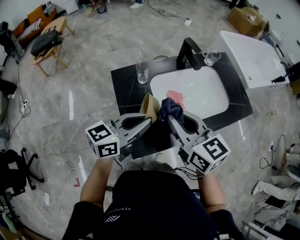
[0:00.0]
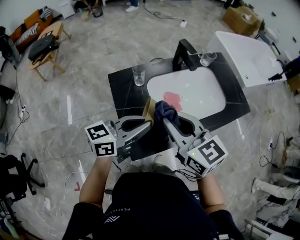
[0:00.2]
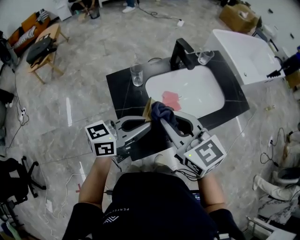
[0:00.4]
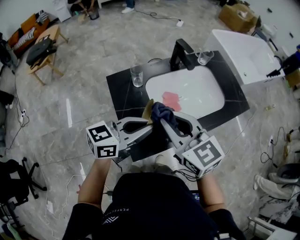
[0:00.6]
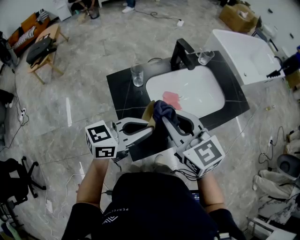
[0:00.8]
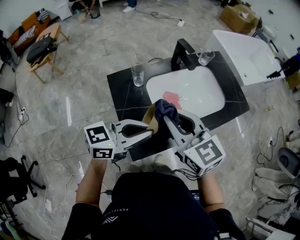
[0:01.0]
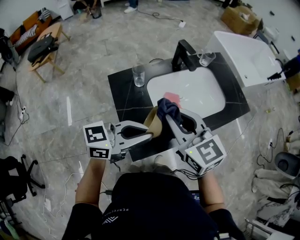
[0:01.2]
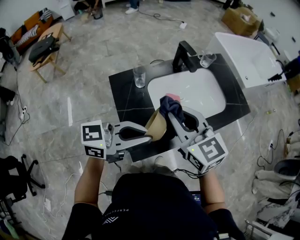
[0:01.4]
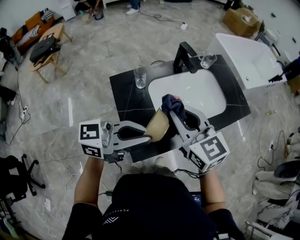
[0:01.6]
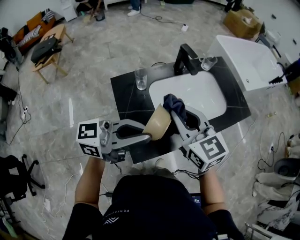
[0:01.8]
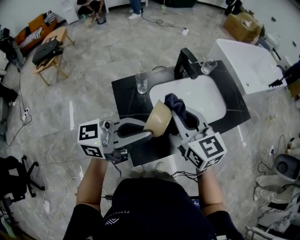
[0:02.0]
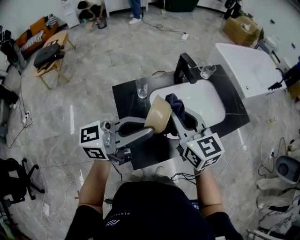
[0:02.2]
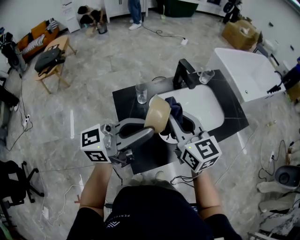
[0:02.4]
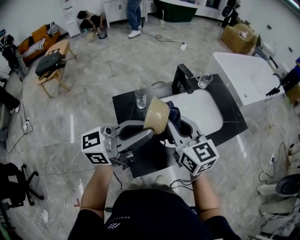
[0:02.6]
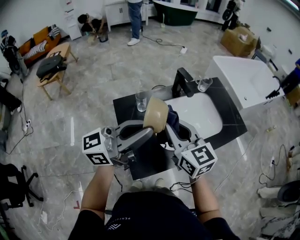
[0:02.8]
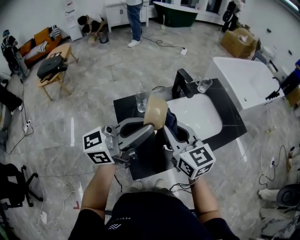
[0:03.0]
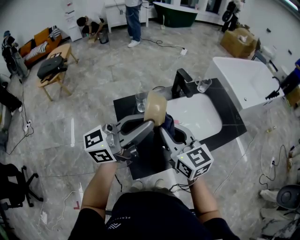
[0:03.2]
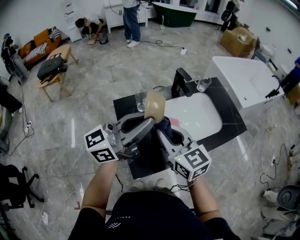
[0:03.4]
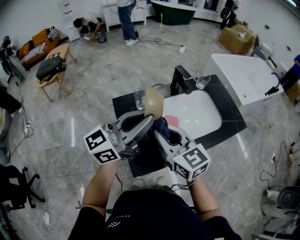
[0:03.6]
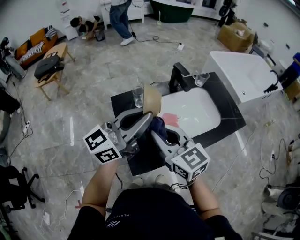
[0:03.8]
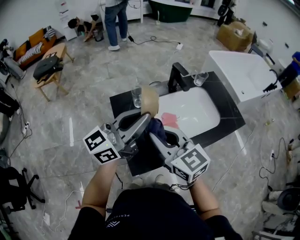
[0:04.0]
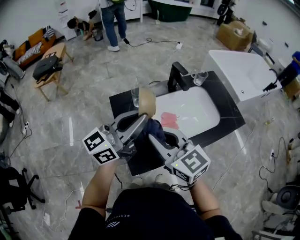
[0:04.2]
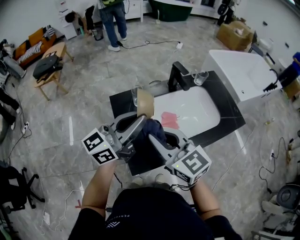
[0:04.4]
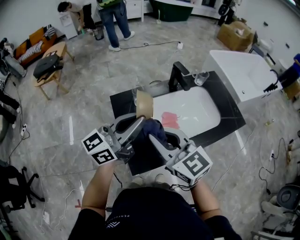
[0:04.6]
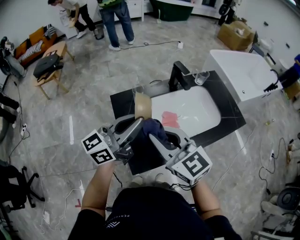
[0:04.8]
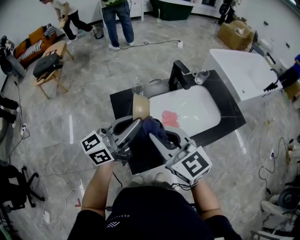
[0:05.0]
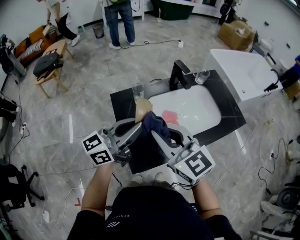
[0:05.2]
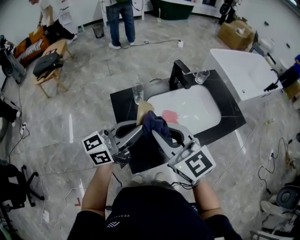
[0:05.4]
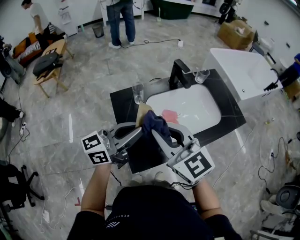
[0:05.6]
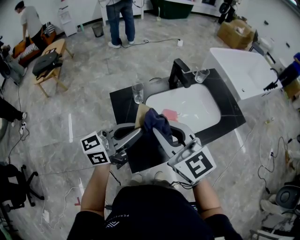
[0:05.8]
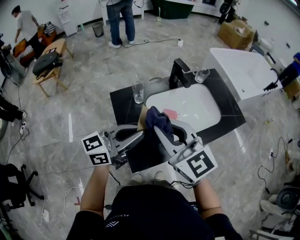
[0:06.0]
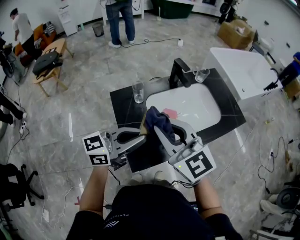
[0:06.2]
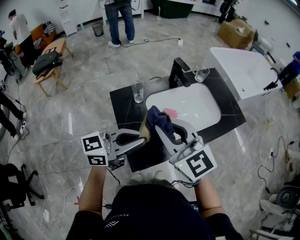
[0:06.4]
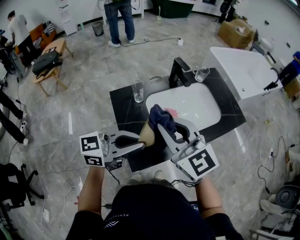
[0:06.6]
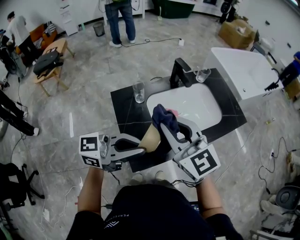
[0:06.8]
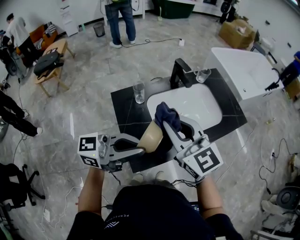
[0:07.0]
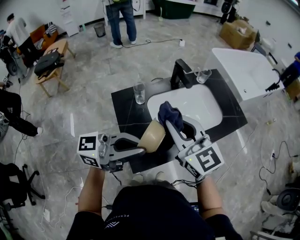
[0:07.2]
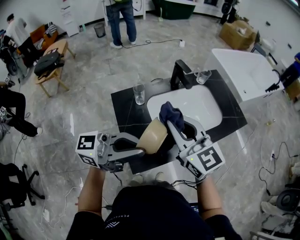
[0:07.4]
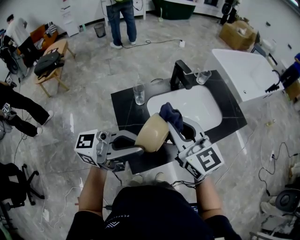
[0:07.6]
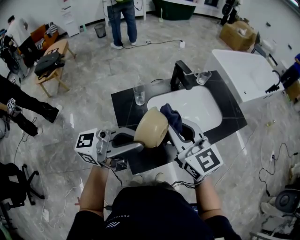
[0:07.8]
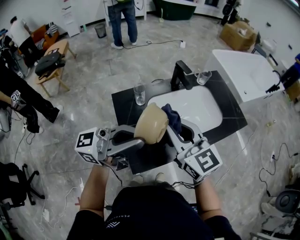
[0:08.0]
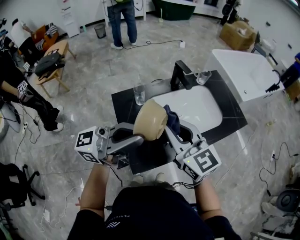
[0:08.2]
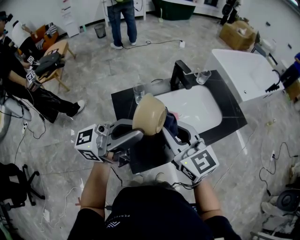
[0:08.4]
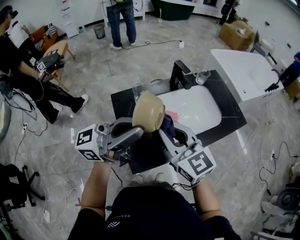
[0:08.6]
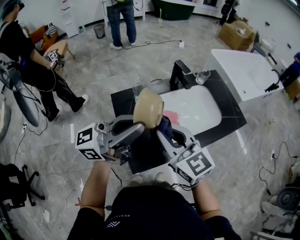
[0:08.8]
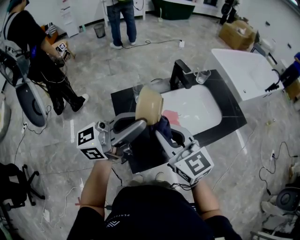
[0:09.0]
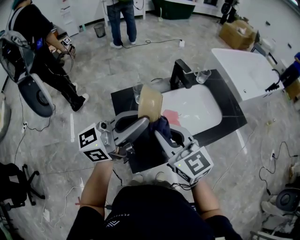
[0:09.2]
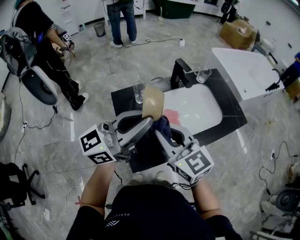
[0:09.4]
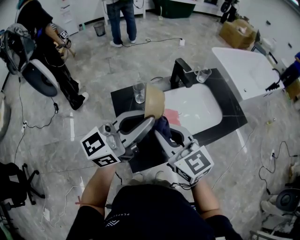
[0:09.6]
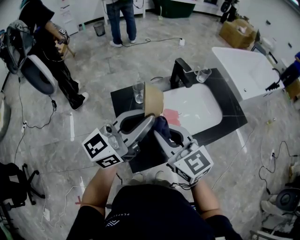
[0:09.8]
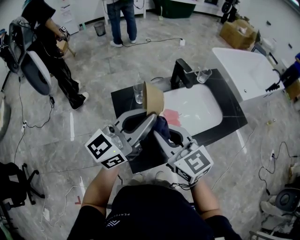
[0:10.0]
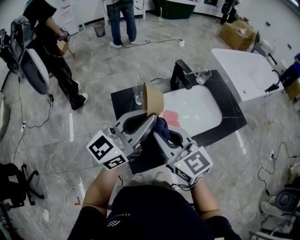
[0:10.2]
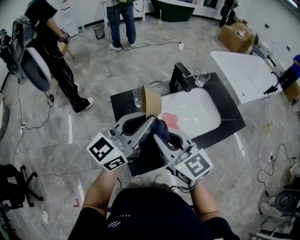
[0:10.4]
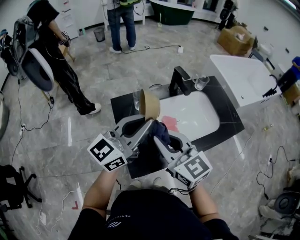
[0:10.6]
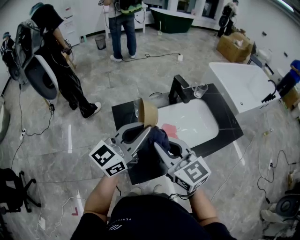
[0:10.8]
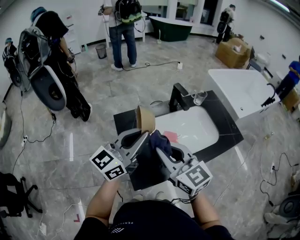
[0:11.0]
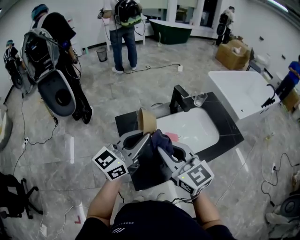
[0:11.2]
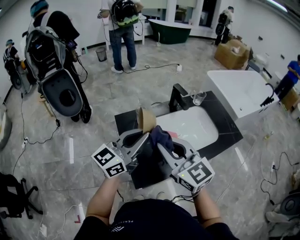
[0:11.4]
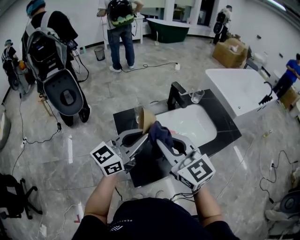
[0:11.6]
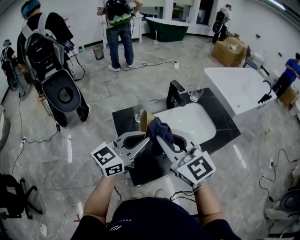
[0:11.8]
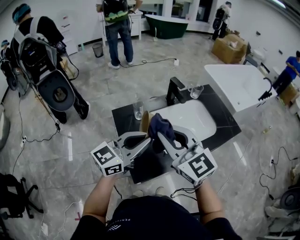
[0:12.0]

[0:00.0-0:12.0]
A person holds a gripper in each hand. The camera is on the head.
0:00.0 to 0:01.6: The left gripper goes approximately 10 cm upward and backward, and turns by roughly 30 degrees.
0:01.6 to 0:03.0: The left gripper heads upward and forward, covering approximately 10 cm, and swivels about 20 degrees.
0:03.0 to 0:04.4: The right gripper heads backward, covering roughly 5 cm.
0:04.4 to 0:06.0: The left gripper goes approximately 5 cm downward.
0:06.0 to 0:07.6: The left gripper travels upward and backward by approximately 10 cm, and rotates roughly 30 degrees.
0:07.6 to 0:09.0: The left gripper is displaced forward by roughly 5 cm.
0:09.0 to 0:10.4: The left gripper ends up some 5 cm from where it was, and changes its angle by about 30 degrees.
0:10.4 to 0:12.0: The left gripper moves roughly 5 cm, while the right gripper shifts approximately 5 cm upward.

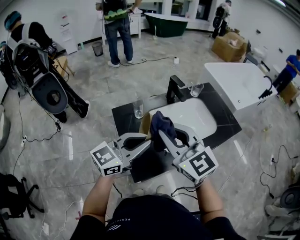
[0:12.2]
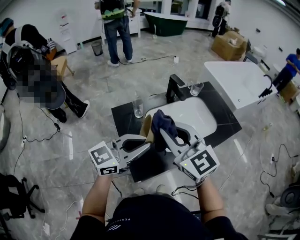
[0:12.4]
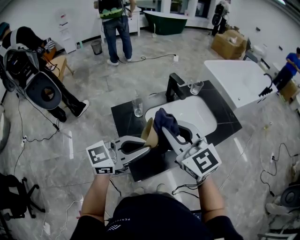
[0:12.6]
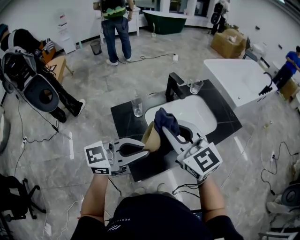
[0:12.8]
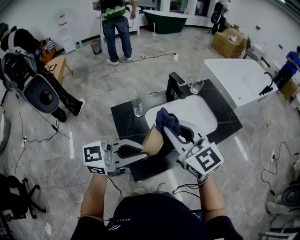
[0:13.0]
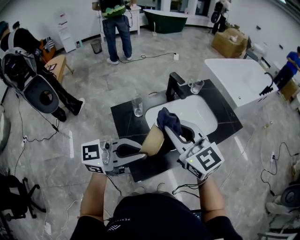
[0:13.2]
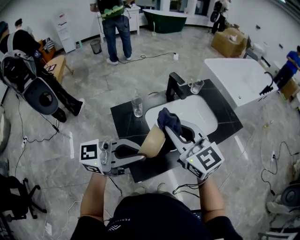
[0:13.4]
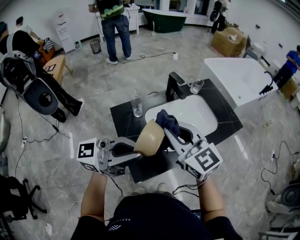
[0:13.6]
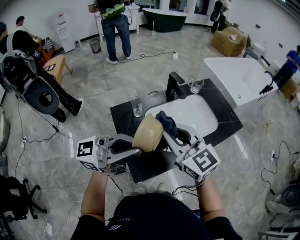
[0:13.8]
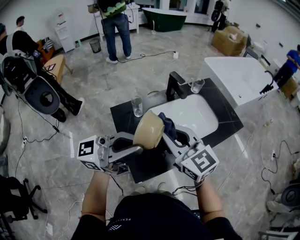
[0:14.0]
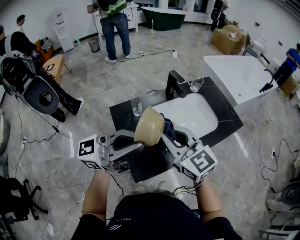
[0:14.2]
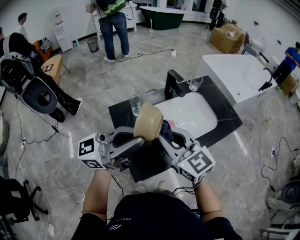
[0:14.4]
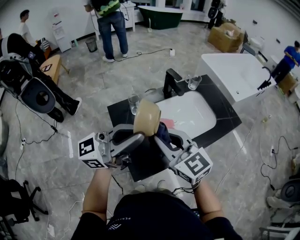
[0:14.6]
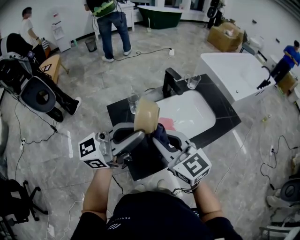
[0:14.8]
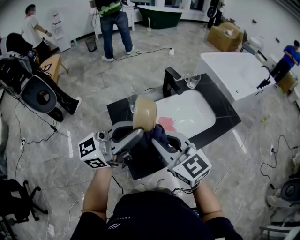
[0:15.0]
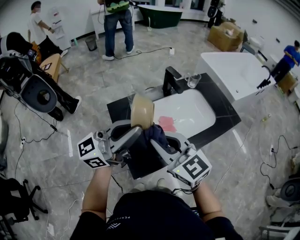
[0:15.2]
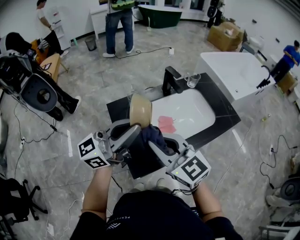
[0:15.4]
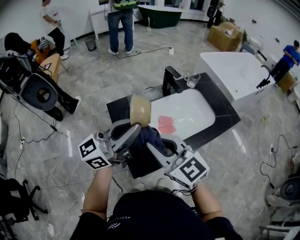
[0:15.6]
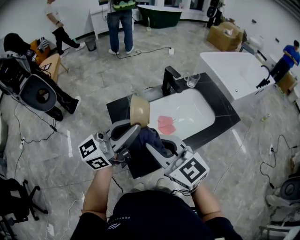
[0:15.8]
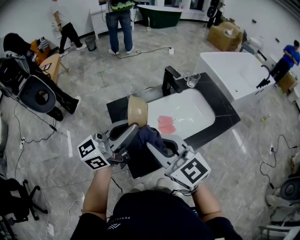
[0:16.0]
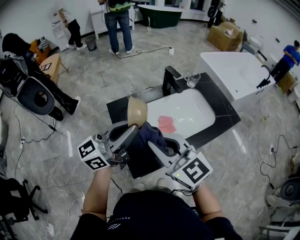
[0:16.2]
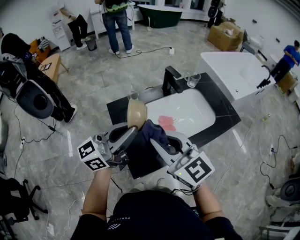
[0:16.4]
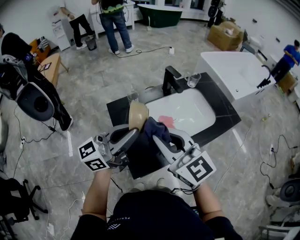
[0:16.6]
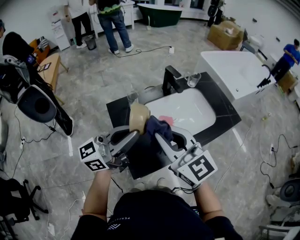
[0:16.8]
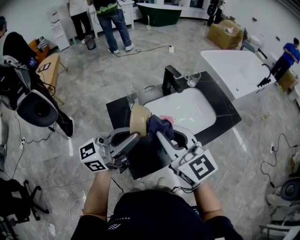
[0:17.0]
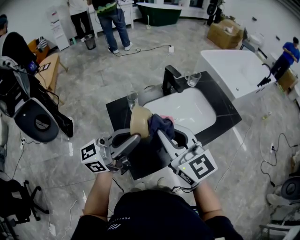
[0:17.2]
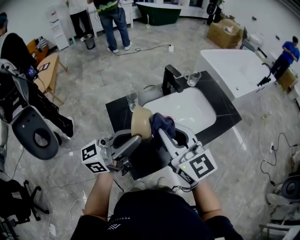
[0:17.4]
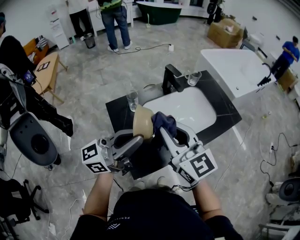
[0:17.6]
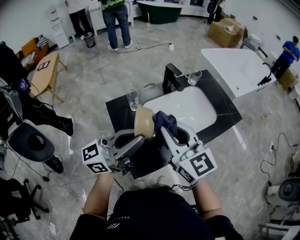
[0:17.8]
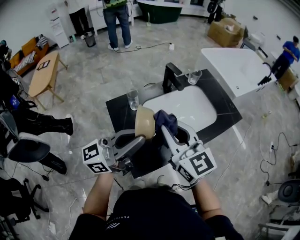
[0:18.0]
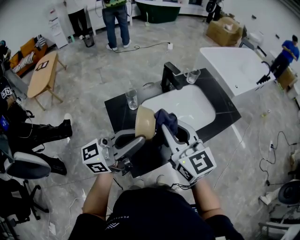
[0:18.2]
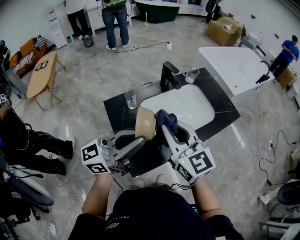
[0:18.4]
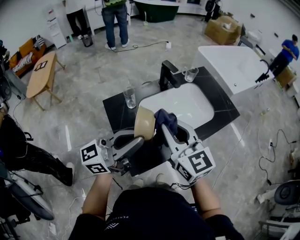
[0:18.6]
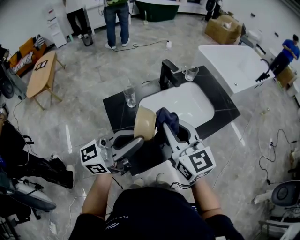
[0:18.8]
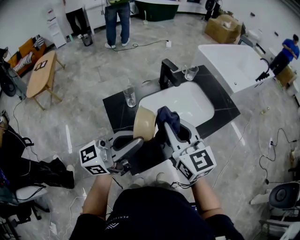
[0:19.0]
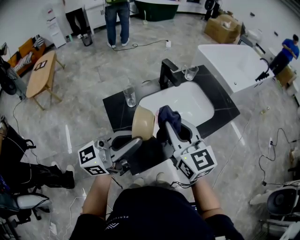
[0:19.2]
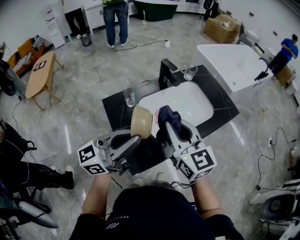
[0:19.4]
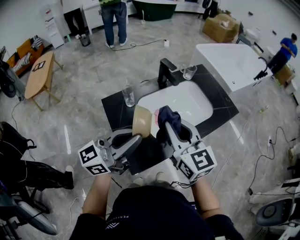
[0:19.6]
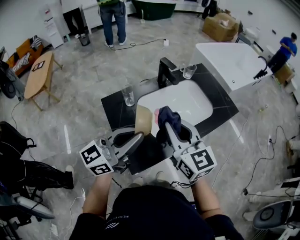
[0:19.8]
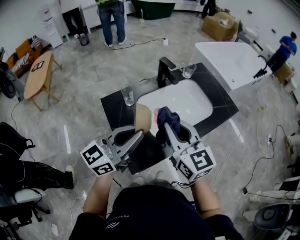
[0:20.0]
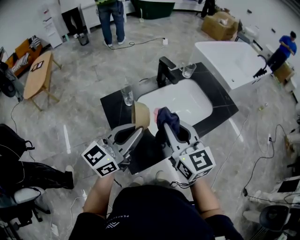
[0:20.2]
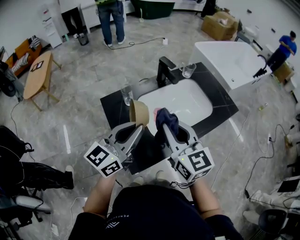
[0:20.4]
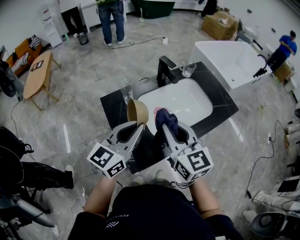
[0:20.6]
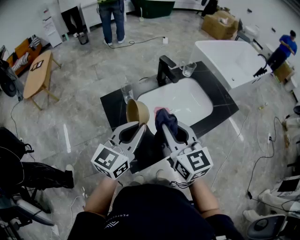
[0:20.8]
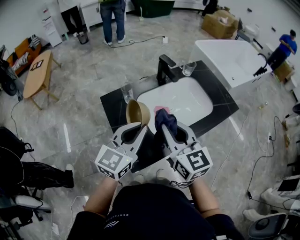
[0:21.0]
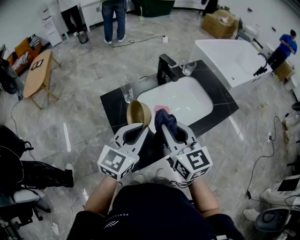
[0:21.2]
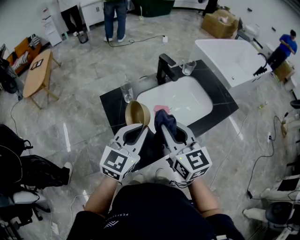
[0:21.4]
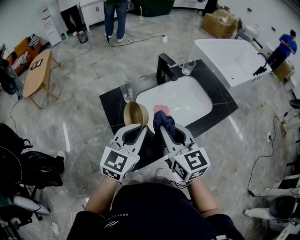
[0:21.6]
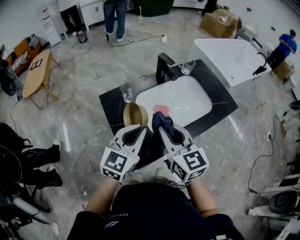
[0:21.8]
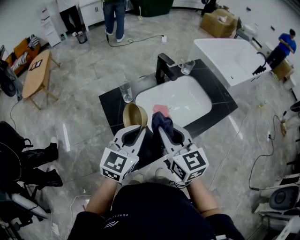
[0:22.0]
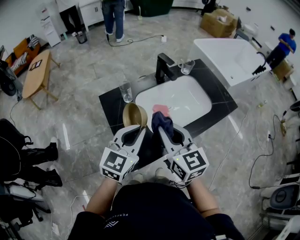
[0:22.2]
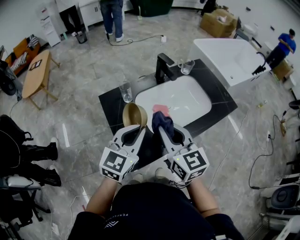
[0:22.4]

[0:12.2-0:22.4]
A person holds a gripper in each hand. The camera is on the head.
0:12.2 to 0:13.6: The left gripper moves upward, about 5 cm, and changes its angle by about 40 degrees.
0:13.6 to 0:15.2: The right gripper ends up roughly 5 cm from where it was, while the left gripper moves some 5 cm, and rotates roughly 20 degrees.
0:15.2 to 0:18.0: The grippers stay close to where they were, moving slightly.
0:18.0 to 0:19.4: There are only small adjustments of the grippers.
0:19.4 to 0:21.0: The left gripper shifts roughly 5 cm downward, and swivels roughly 40 degrees.
0:21.0 to 0:22.4: There are only small adjustments of the grippers.

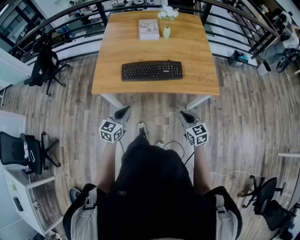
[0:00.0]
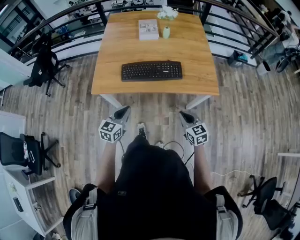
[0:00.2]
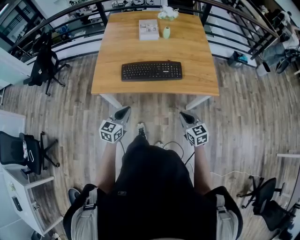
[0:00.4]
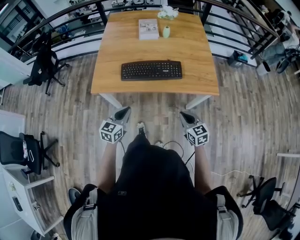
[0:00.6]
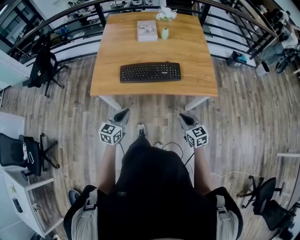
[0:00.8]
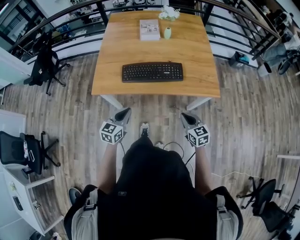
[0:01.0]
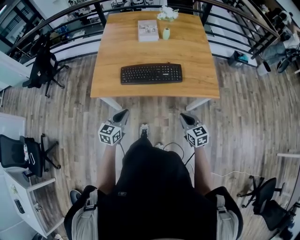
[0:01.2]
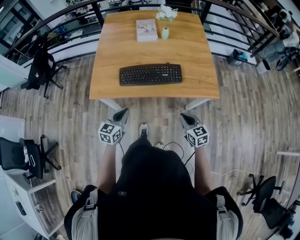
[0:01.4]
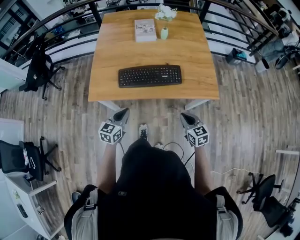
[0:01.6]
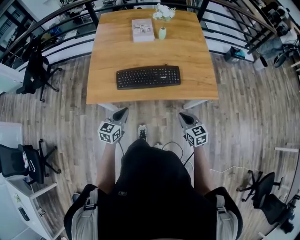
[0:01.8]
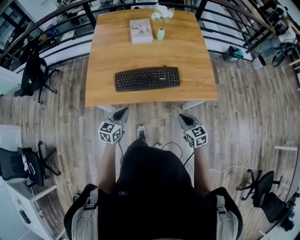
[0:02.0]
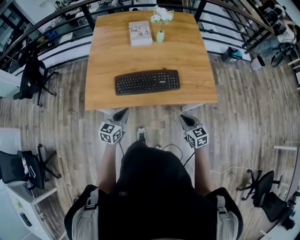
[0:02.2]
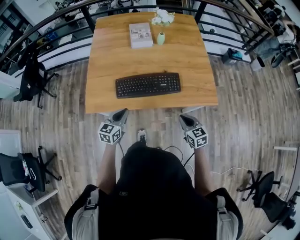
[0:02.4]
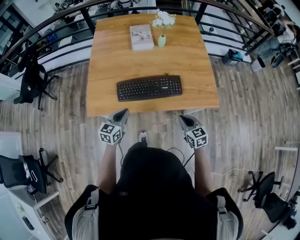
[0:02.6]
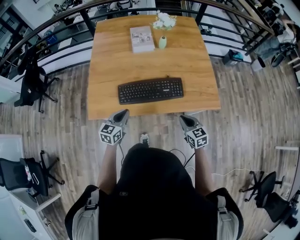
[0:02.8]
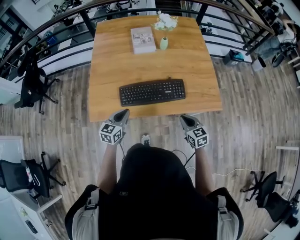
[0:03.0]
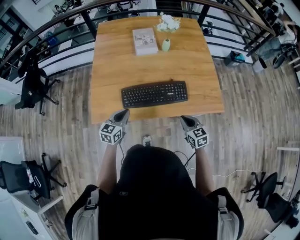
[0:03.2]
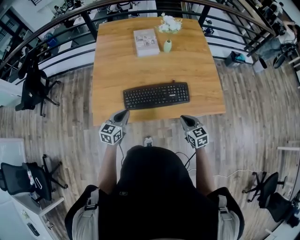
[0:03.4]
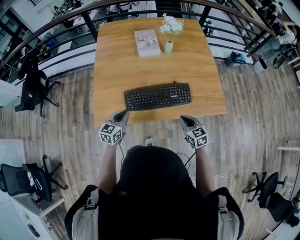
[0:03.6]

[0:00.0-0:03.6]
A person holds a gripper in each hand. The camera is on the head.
0:00.0 to 0:01.8: The two grippers go roughly 10 cm forward.
0:01.8 to 0:03.6: Both grippers travel together forward and to the left, roughly 15 cm.
